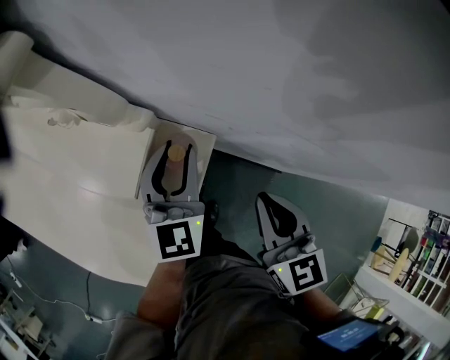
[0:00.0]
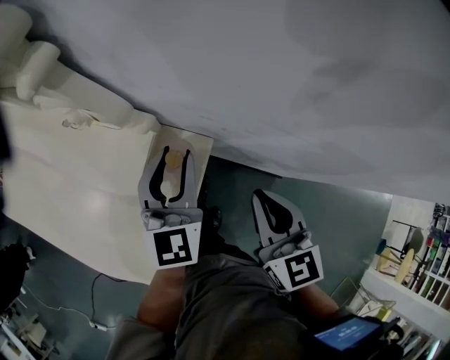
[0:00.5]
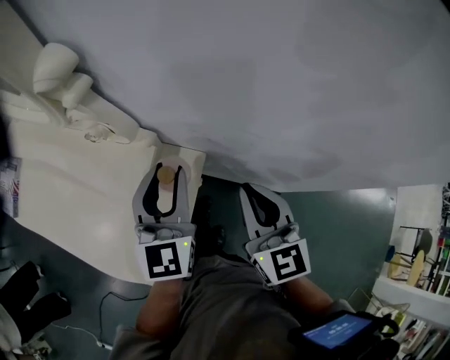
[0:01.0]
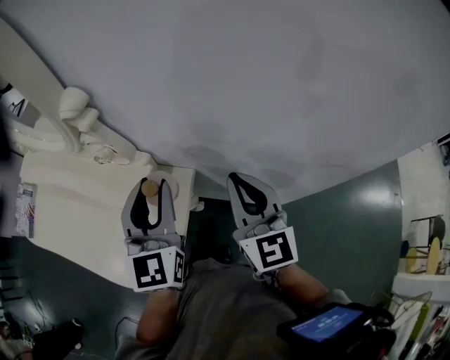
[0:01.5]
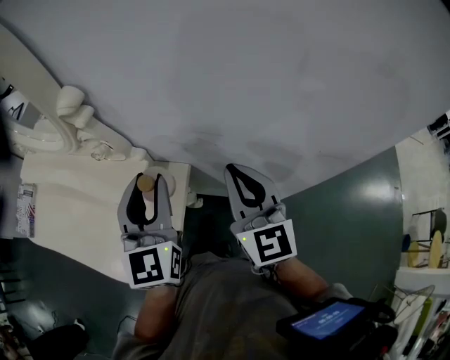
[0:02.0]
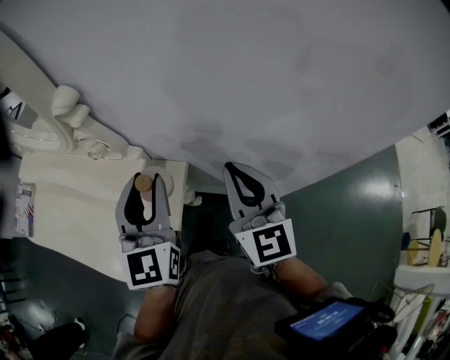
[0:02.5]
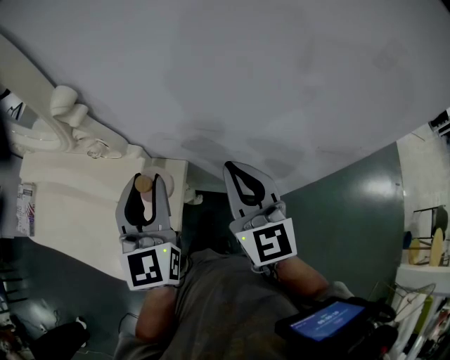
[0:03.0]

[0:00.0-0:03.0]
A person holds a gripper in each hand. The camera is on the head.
0:00.0 to 0:01.5: The grippers both shift upward by about 20 cm. The right gripper rotates approximately 20 degrees.
0:01.5 to 0:03.0: There are only small adjustments of the grippers.

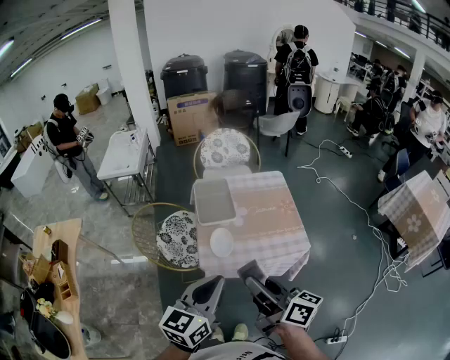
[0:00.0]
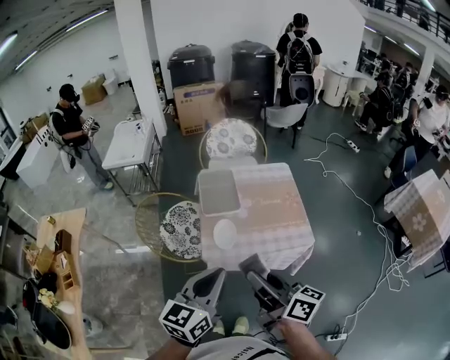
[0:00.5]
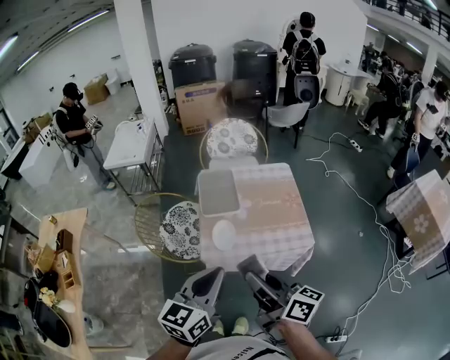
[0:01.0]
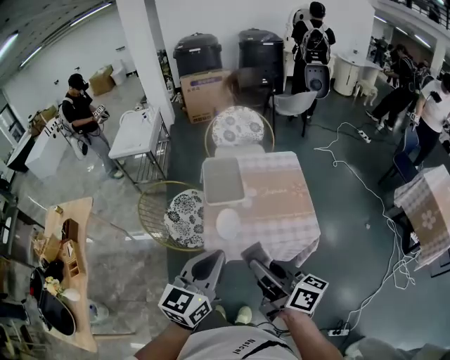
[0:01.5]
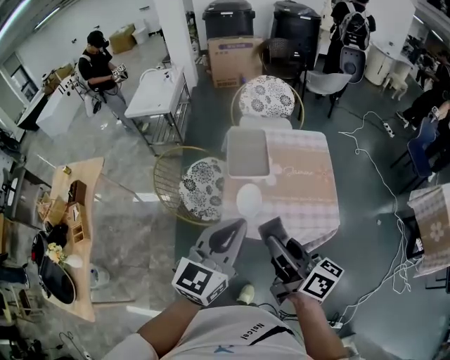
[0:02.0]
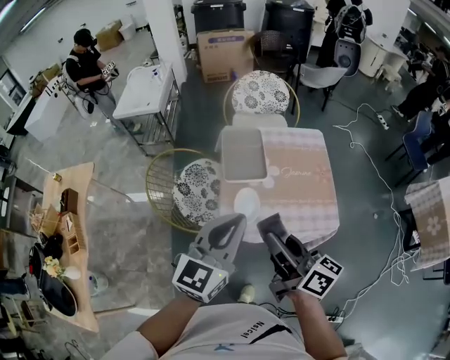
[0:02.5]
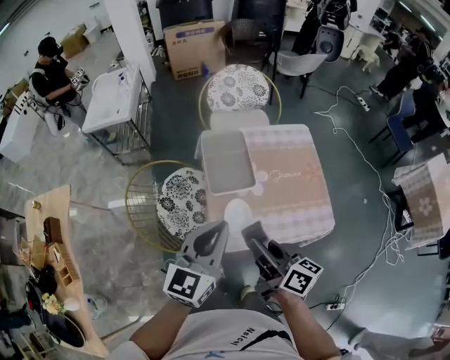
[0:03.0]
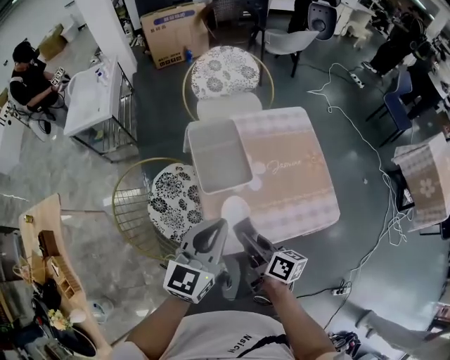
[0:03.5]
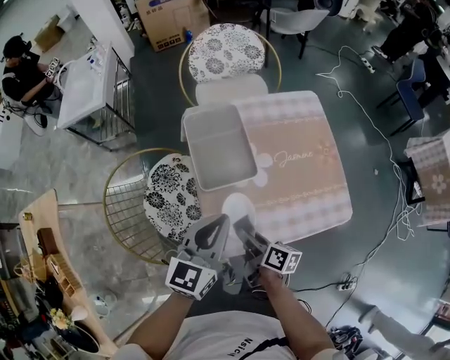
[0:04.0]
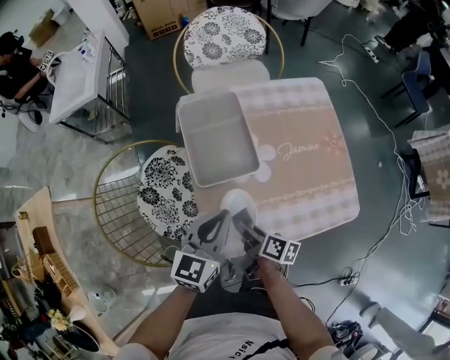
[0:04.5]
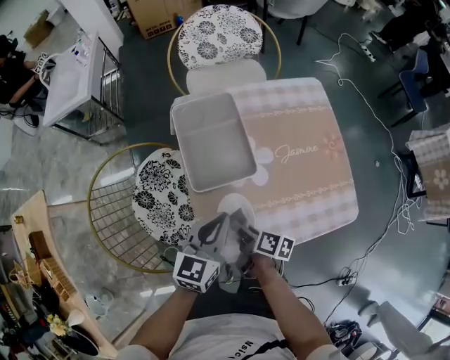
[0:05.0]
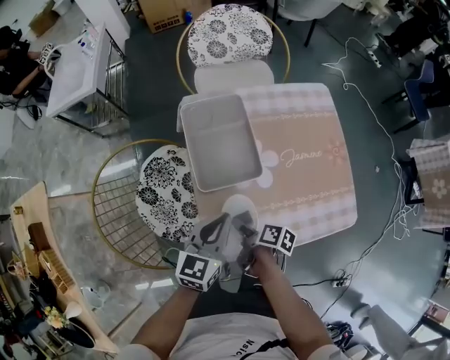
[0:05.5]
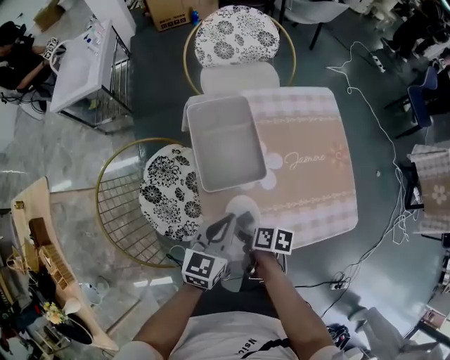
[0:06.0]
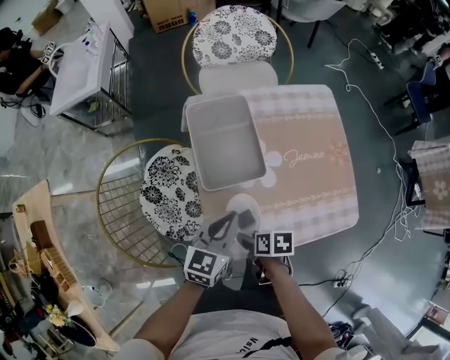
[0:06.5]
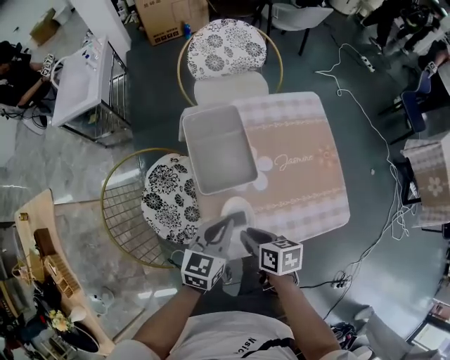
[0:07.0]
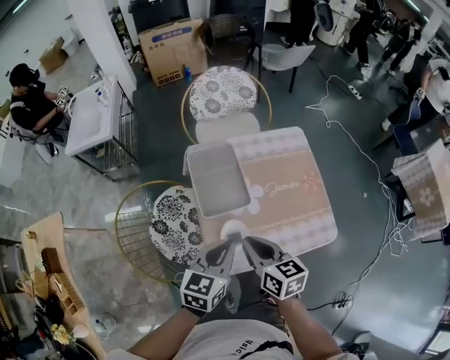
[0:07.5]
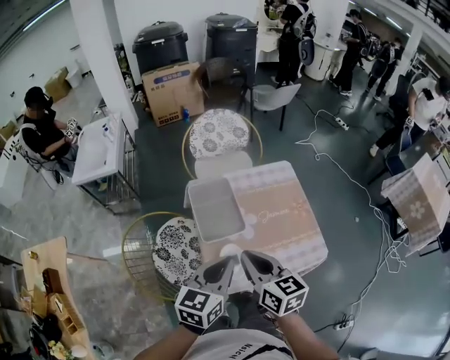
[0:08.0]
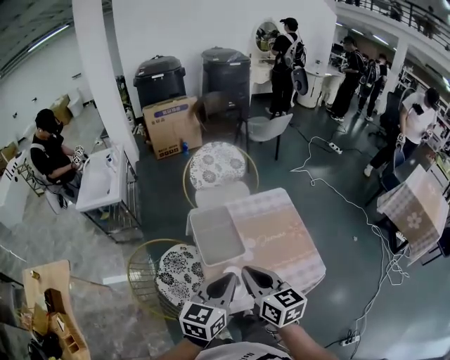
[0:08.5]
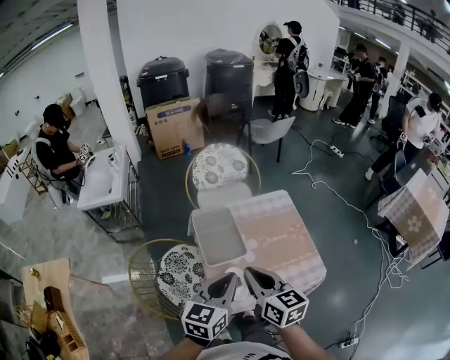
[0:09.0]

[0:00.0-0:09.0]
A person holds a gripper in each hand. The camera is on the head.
0:00.0 to 0:02.0: The grippers both shift forward by about 5 cm.
0:02.0 to 0:04.5: The grippers both shift downward and forward by roughly 40 cm. The right gripper points its fingers approximately 40 degrees further downward.
0:04.5 to 0:07.0: The right gripper goes approximately 10 cm upward, turns by some 30 degrees, and opens, then closes again.
0:07.0 to 0:09.0: Both grippers move upward, roughly 25 cm. The right gripper tips its fingers upward by approximately 30 degrees, and closes.

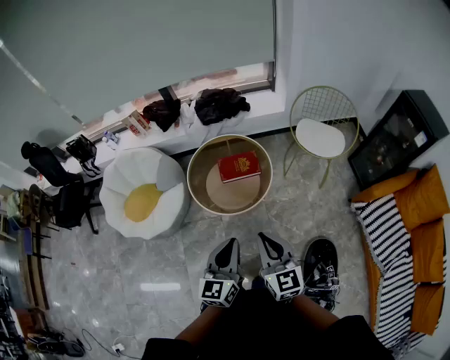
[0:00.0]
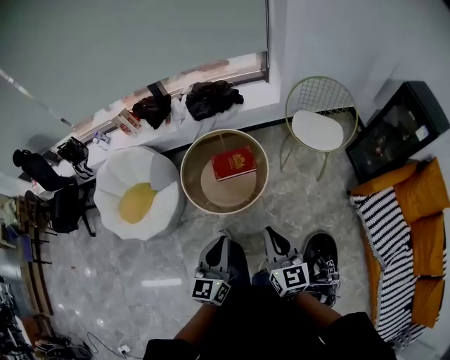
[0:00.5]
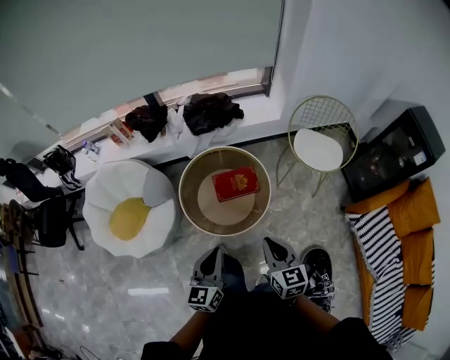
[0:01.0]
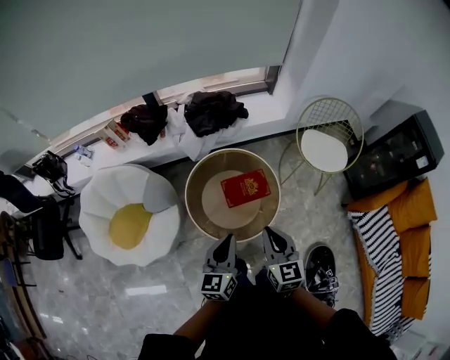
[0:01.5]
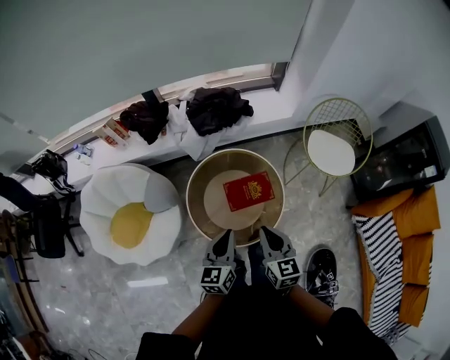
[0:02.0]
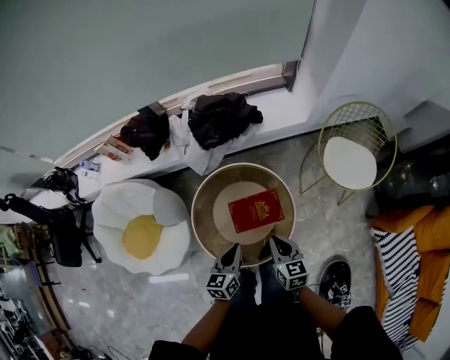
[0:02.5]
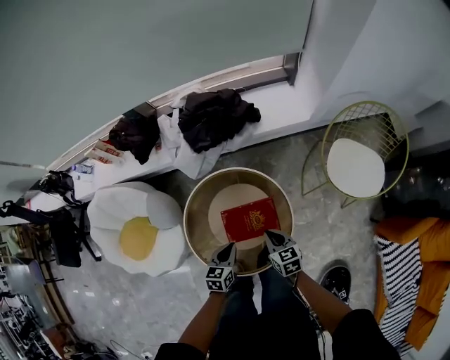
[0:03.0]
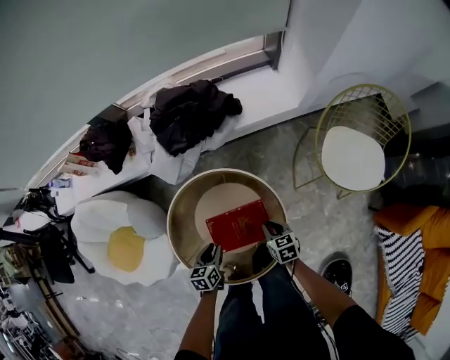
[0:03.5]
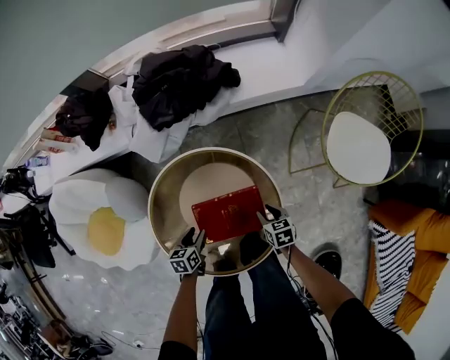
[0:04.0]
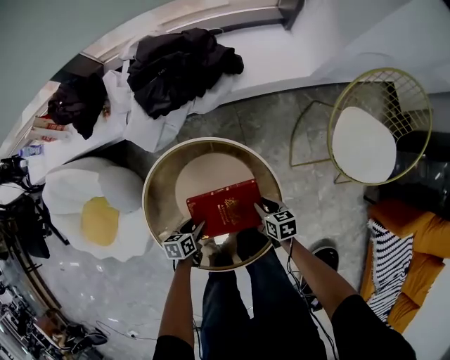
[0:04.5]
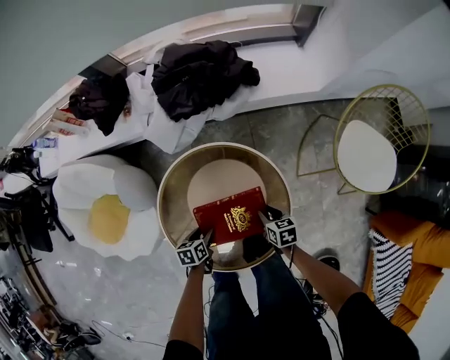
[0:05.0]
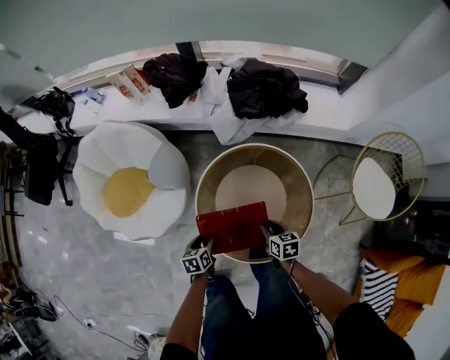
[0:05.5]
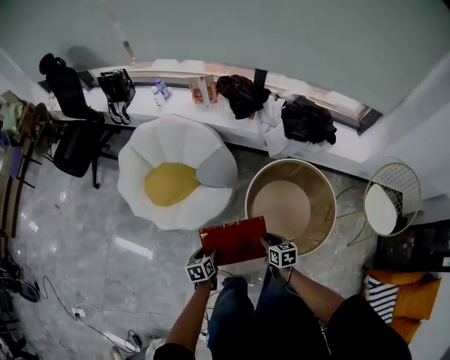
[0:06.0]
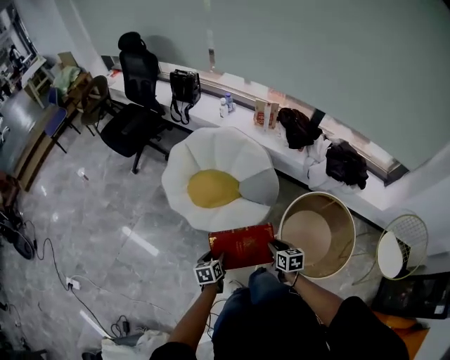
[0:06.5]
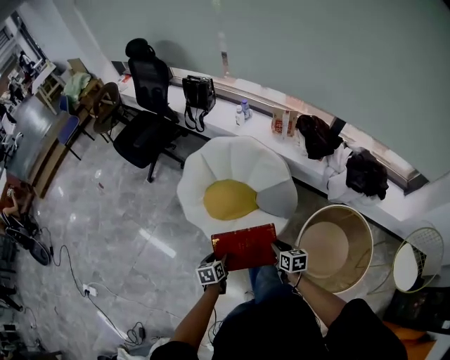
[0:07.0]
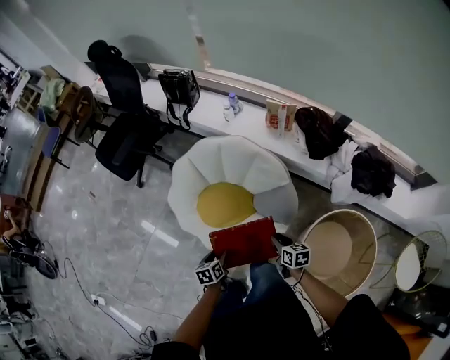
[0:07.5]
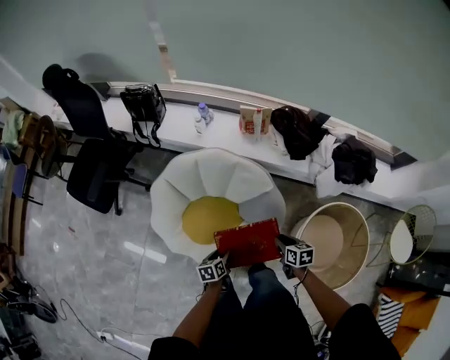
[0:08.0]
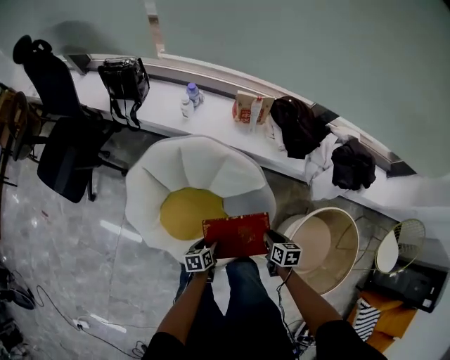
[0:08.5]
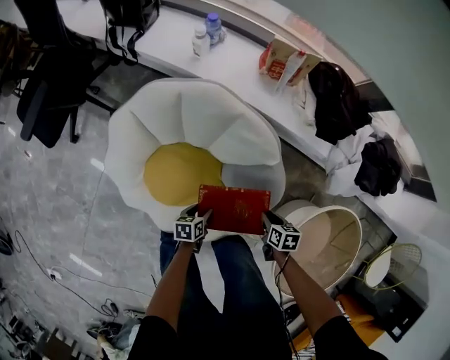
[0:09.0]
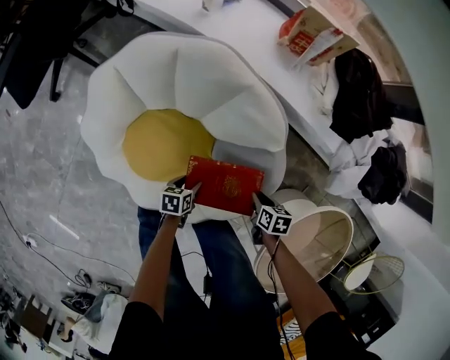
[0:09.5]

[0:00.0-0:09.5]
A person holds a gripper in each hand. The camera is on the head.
0:00.0 to 0:02.0: The left gripper travels forward and to the left by about 35 cm, while the right gripper goes approximately 30 cm forward.
0:02.0 to 0:04.0: The left gripper goes about 50 cm downward, points its fingers roughly 40 degrees further downward, and opens. The right gripper heads downward and forward, covering some 50 cm, angles its fingers downward, by roughly 30 degrees, and opens up.
0:04.0 to 0:05.5: The right gripper goes some 20 cm to the left and upward, while the left gripper is displaced to the left, backward and upward by roughly 20 cm, and swivels about 20 degrees.
0:05.5 to 0:07.5: Both grippers are carried to the left and forward, about 50 cm. The right gripper rotates some 20 degrees; the left gripper rotates some 30 degrees.
0:07.5 to 0:09.5: The two grippers go some 35 cm downward. The right gripper turns by roughly 30 degrees. Meanwhile the left gripper swivels roughly 20 degrees.

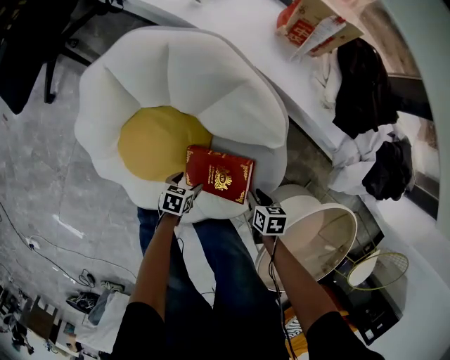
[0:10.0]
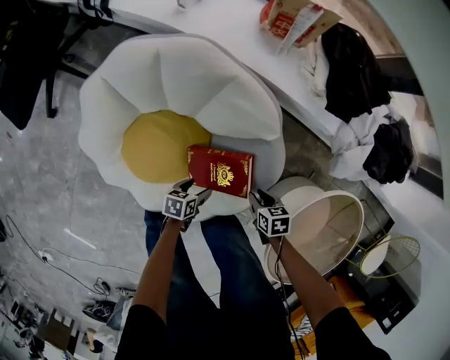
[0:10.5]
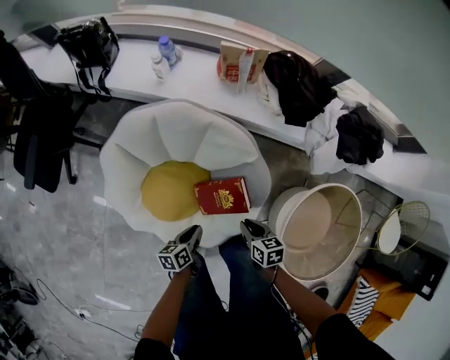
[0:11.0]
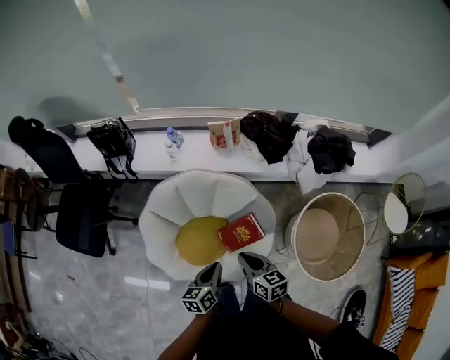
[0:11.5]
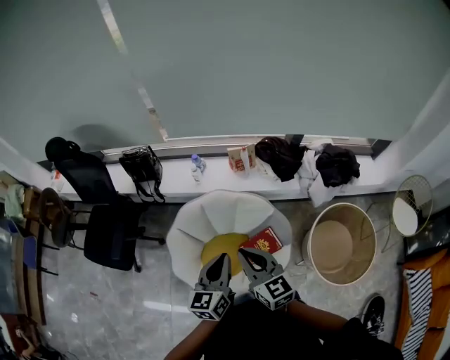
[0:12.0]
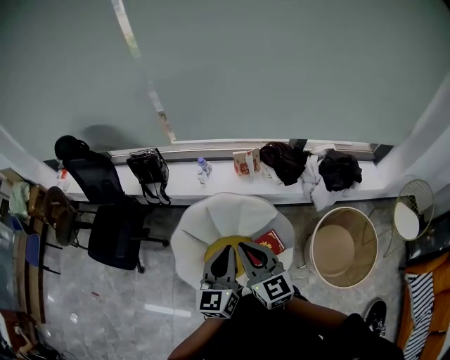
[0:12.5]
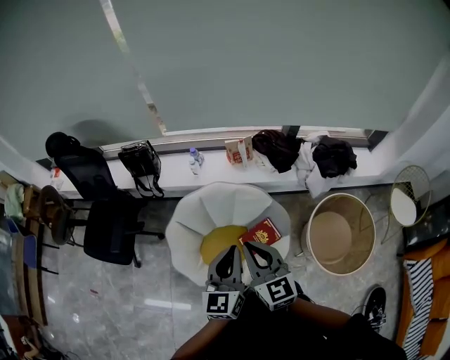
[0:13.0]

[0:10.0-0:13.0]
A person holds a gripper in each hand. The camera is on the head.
0:10.0 to 0:11.5: Both grippers move upward, roughly 50 cm. The left gripper swivels approximately 30 degrees, and closes. The right gripper angles its fingers upward, by roughly 40 degrees, and closes.
0:11.5 to 0:13.0: The grippers both shift upward by approximately 25 cm. The left gripper changes its angle by about 40 degrees; the right gripper turns by about 40 degrees.

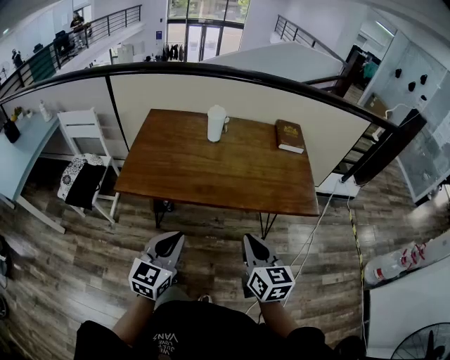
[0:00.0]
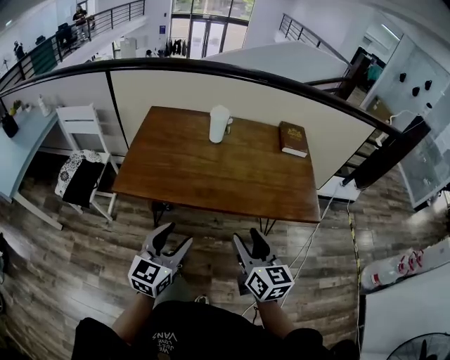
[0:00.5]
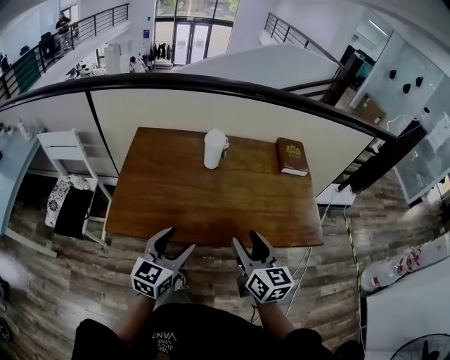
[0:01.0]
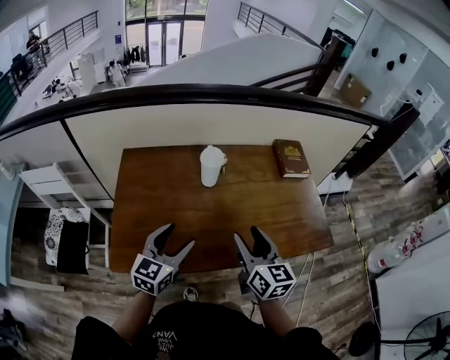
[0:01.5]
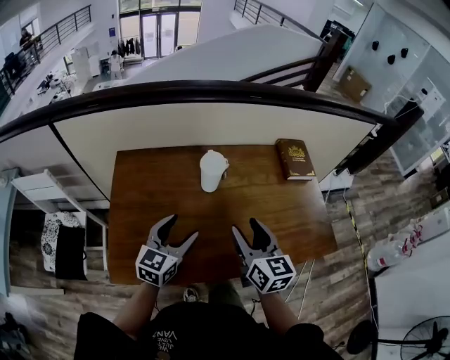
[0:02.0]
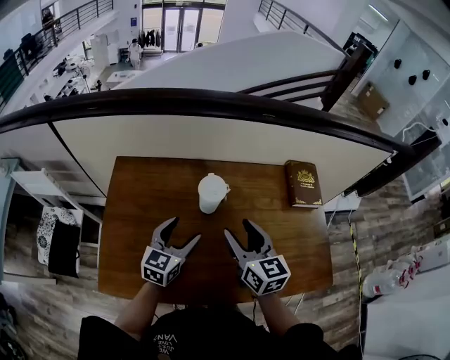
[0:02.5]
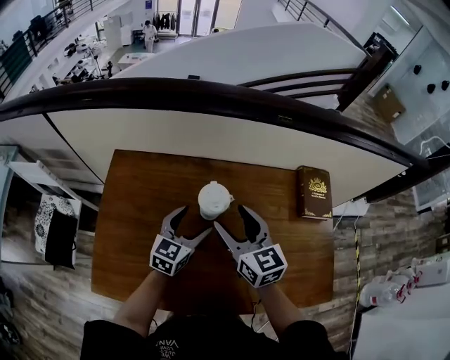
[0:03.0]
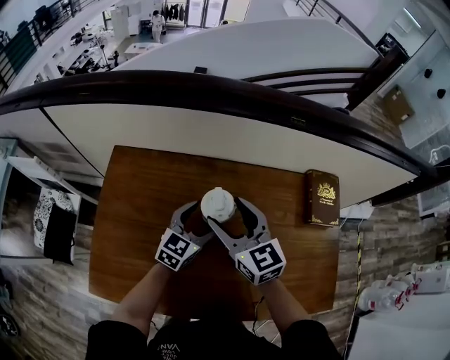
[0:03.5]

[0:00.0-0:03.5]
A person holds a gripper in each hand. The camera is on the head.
0:00.0 to 0:02.0: Both grippers travel together forward, approximately 35 cm. The left gripper opens up; the right gripper opens.
0:02.0 to 0:03.5: The right gripper heads forward, covering approximately 20 cm, and changes its angle by approximately 30 degrees. The left gripper heads forward and downward, covering roughly 20 cm.
